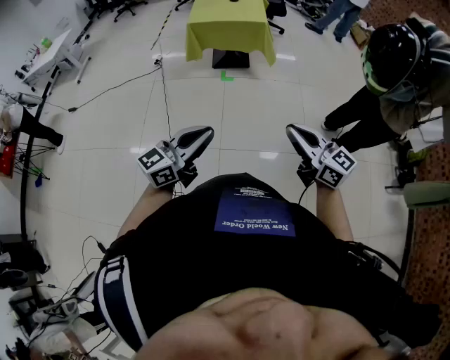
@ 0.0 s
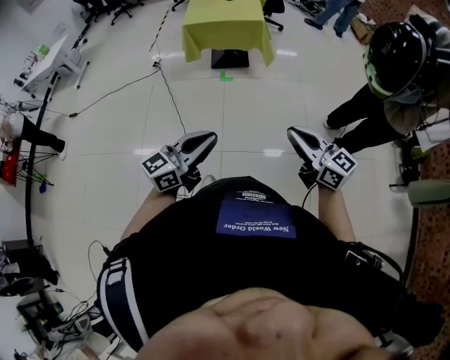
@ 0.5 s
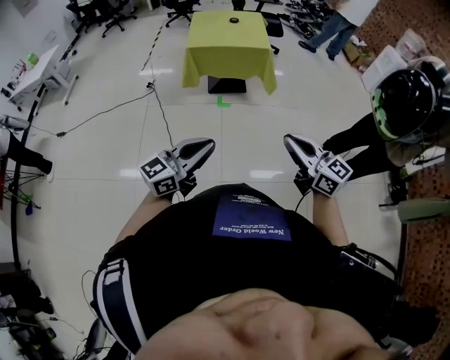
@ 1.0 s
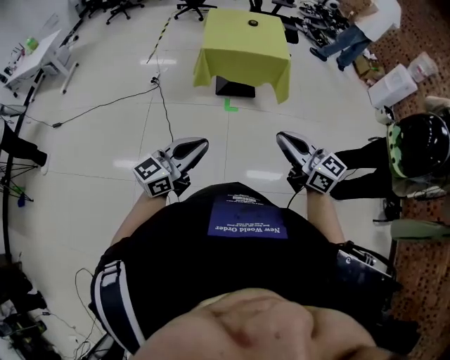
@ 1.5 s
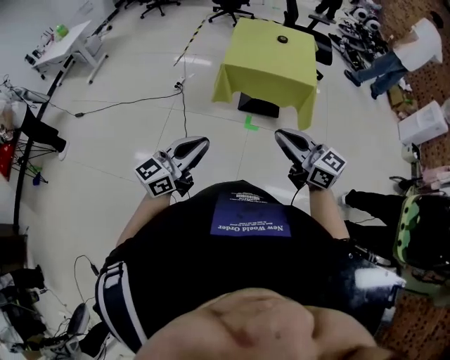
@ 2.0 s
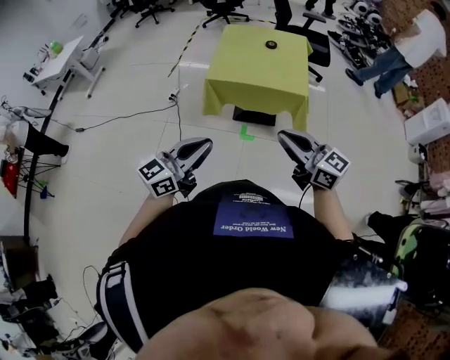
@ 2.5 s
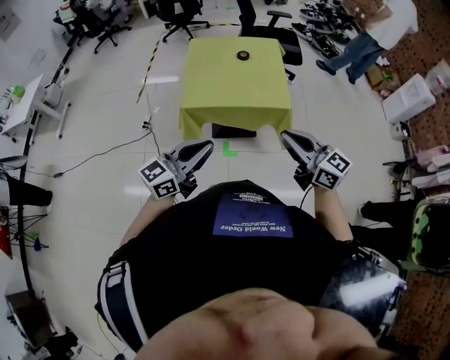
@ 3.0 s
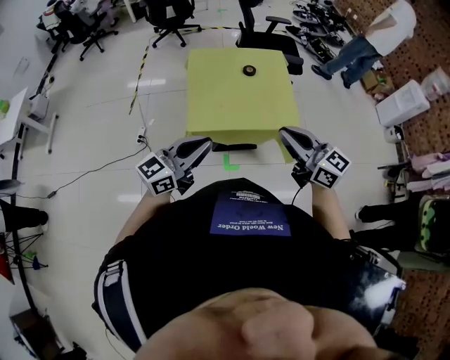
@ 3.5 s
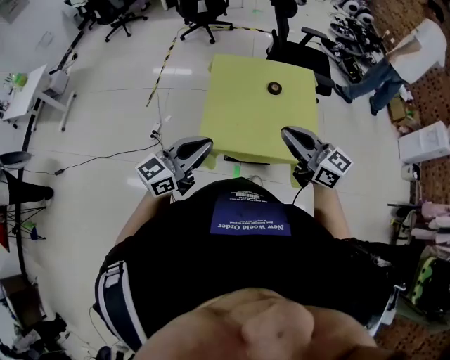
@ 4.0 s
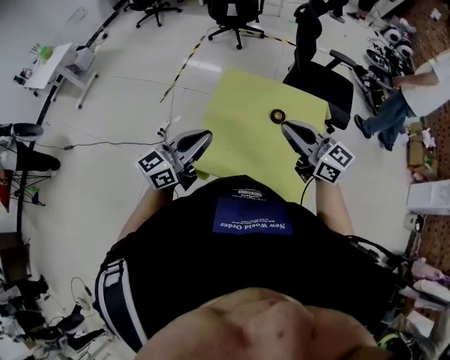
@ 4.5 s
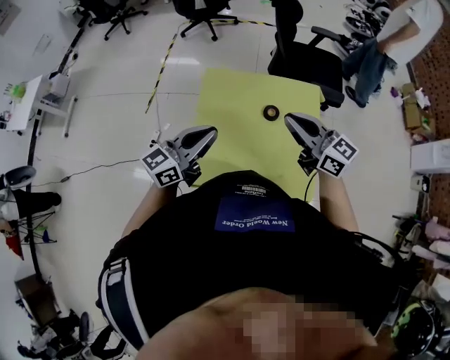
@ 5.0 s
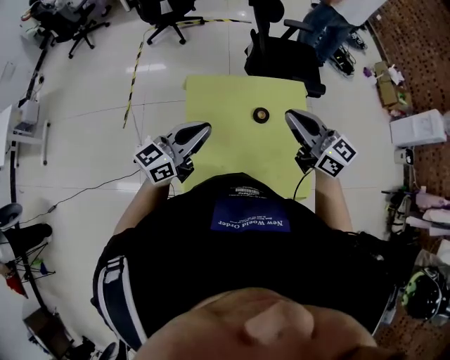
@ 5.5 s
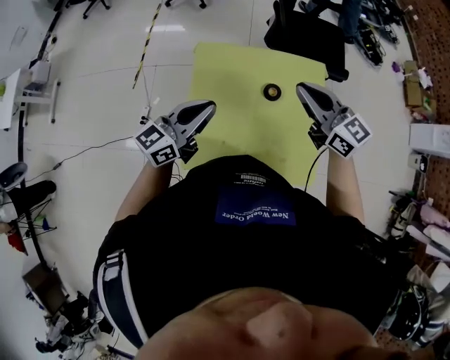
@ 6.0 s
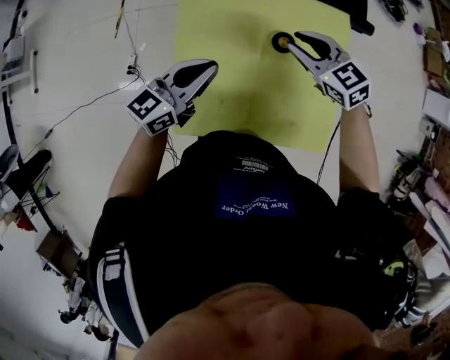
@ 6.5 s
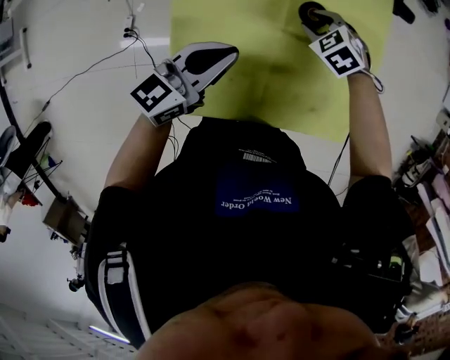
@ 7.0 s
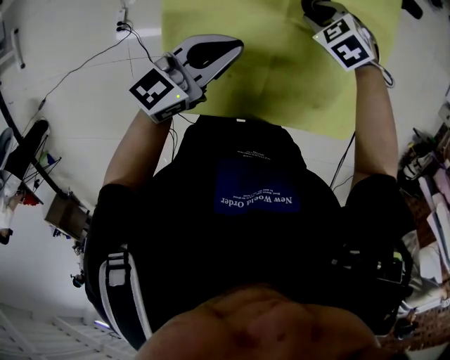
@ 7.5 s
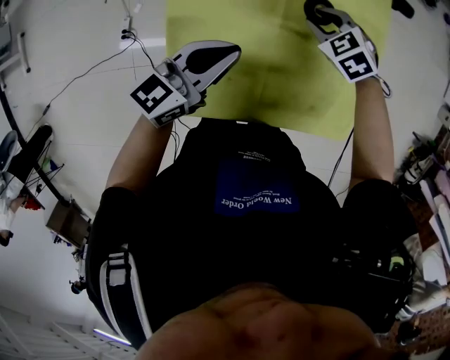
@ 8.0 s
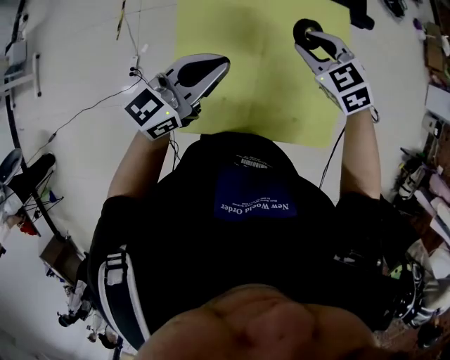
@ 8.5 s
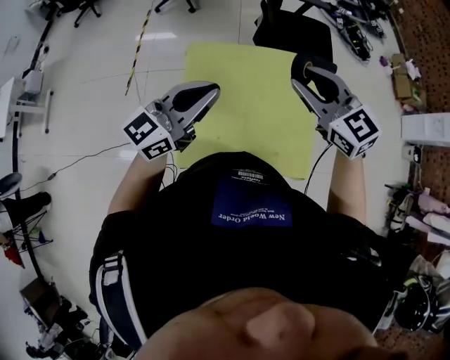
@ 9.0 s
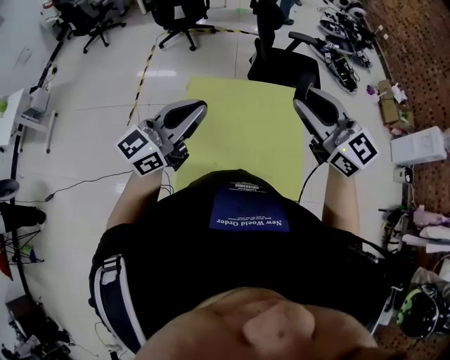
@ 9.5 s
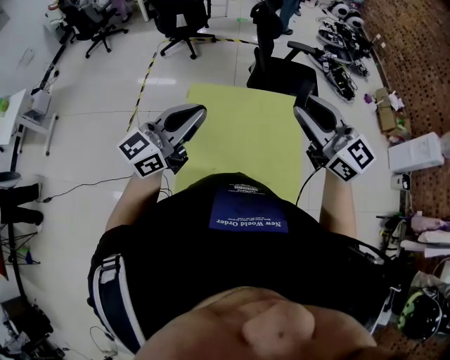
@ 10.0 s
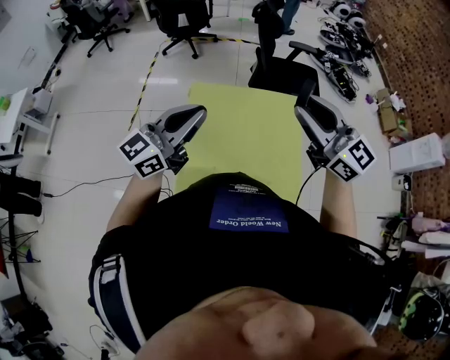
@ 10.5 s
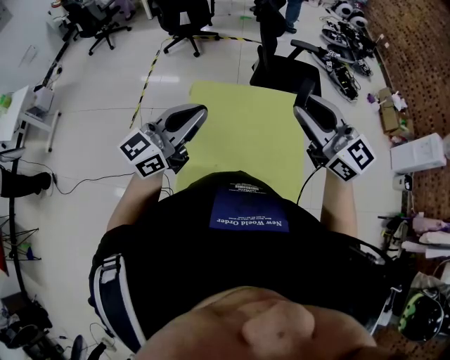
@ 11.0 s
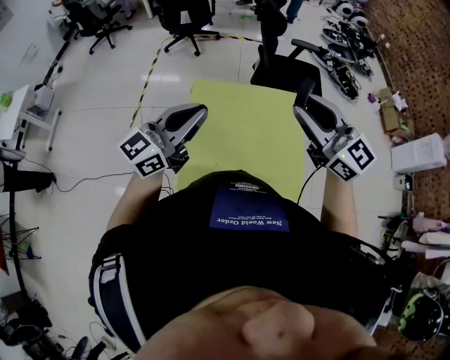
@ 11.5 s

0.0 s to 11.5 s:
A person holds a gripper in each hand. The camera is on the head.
0.0 to 2.0 s: The pair of grippers is taken forward and to the left, some 50 cm.
2.0 to 4.0 s: Both grippers are carried forward, approximately 60 cm.
4.0 to 6.0 s: The grippers both shift forward by roughly 30 cm.
6.0 to 7.5 s: The right gripper moves downward, some 35 cm, tilts its fingers about 60 degrees downward, and opens its fingers, while the left gripper travels downward by about 20 cm.
7.5 to 9.5 s: The left gripper shifts approximately 30 cm upward, and changes its angle by some 30 degrees. Meanwhile the right gripper travels upward by roughly 50 cm, and angles its fingers upward, by about 70 degrees.
9.5 to 11.5 s: There are only small adjustments of the grippers.

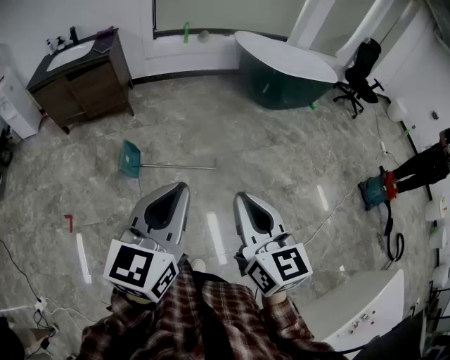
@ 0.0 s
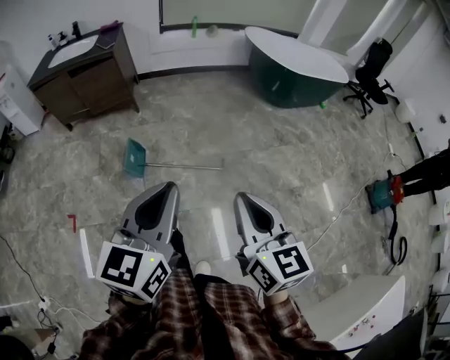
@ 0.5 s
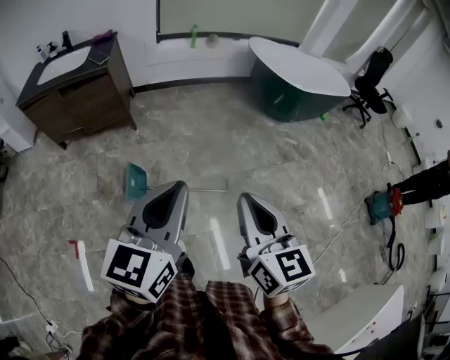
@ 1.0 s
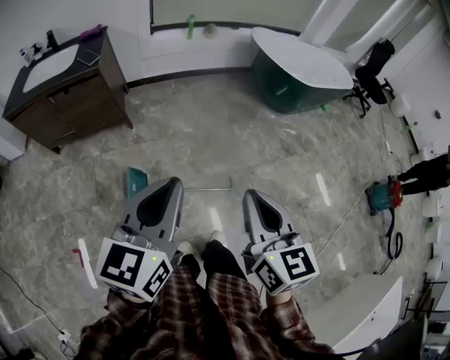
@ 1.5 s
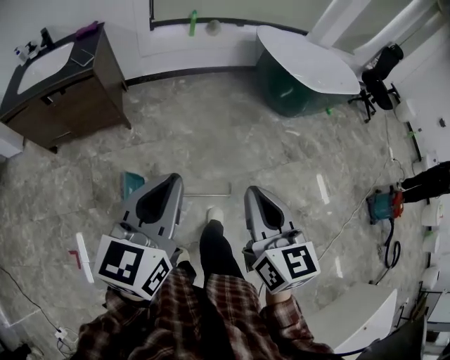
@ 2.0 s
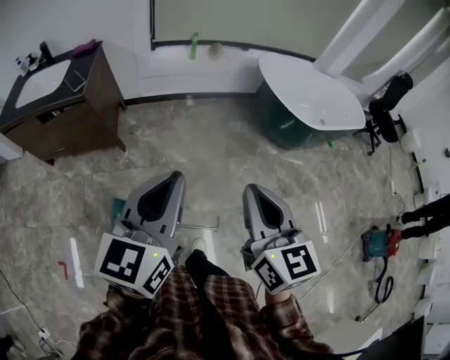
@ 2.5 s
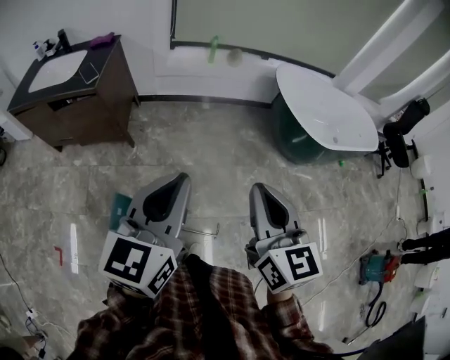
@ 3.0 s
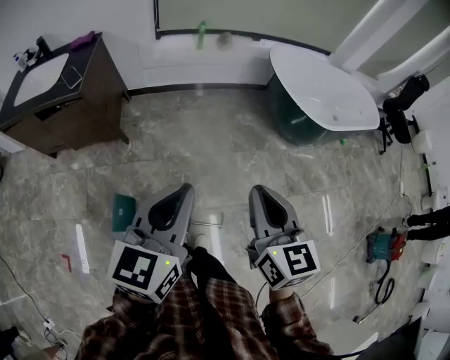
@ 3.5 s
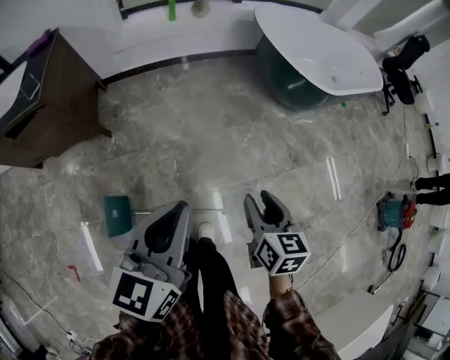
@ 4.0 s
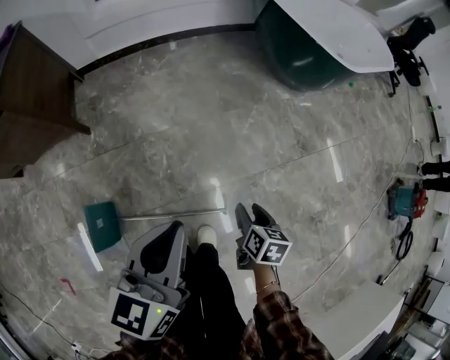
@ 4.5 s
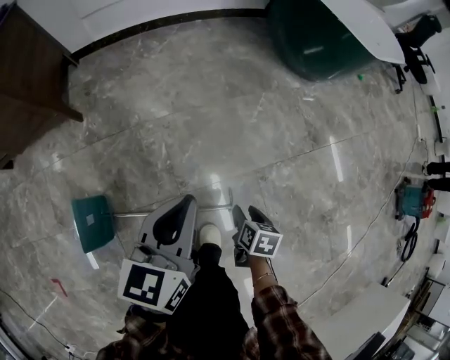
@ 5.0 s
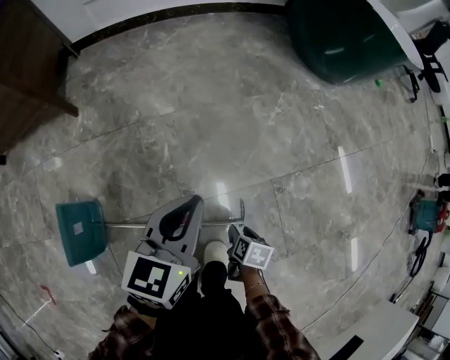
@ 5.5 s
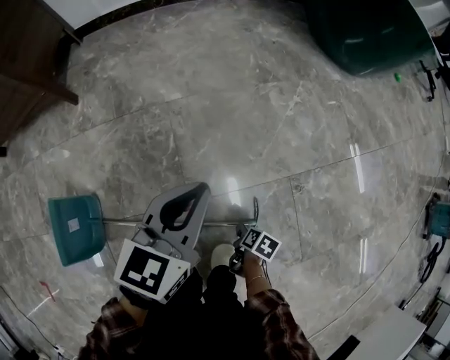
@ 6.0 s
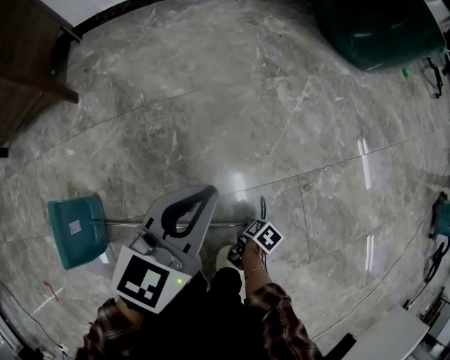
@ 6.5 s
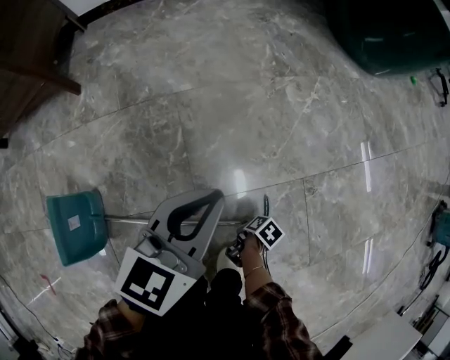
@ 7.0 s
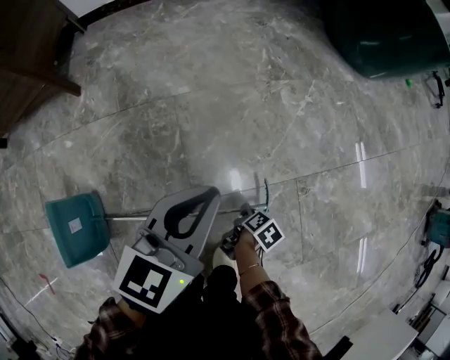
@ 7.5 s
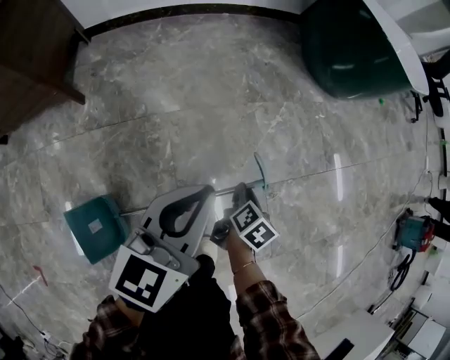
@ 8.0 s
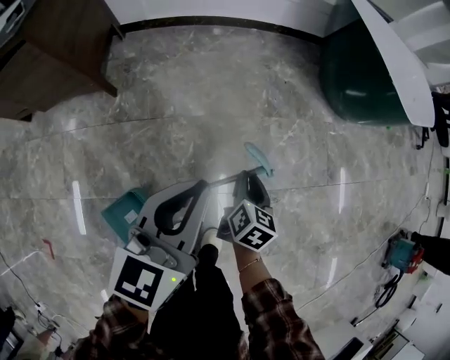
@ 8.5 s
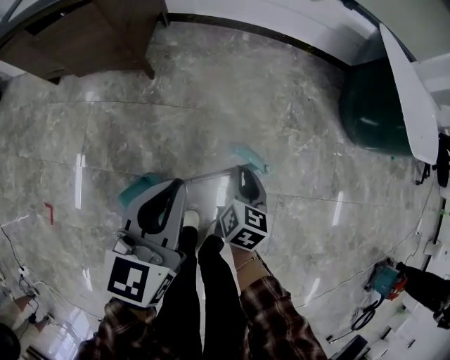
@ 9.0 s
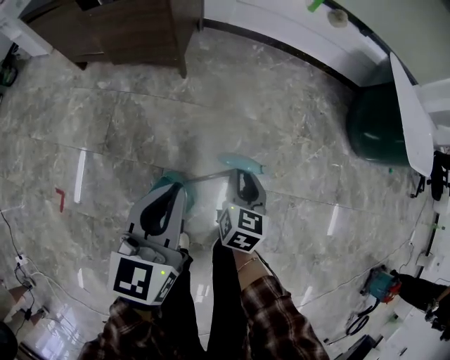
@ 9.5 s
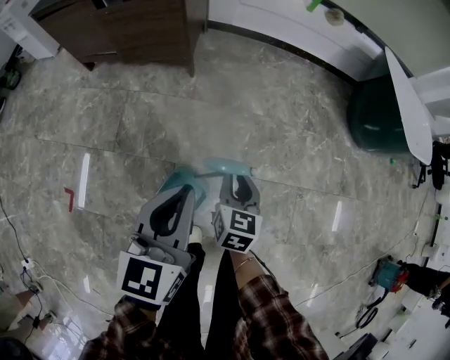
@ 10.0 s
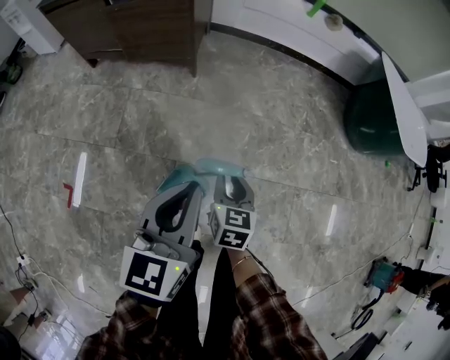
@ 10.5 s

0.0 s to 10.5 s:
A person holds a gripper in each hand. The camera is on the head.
0.0 to 2.0 s: The two grippers travel together, forward, approximately 40 cm.
2.0 to 4.0 s: The left gripper is displaced forward, to the right and downward by about 30 cm. The right gripper travels forward, downward and to the right by about 40 cm, changes its angle by roughly 20 degrees, and opens its fingers.
4.0 to 6.5 s: Both grippers travel together downward, roughly 70 cm. The right gripper angles its fingers downward, by roughly 40 degrees.
6.5 to 8.5 s: The left gripper is displaced upward by roughly 30 cm. The right gripper is displaced upward by roughly 50 cm, points its fingers roughly 40 degrees further upward, and closes its fingers.
8.5 to 10.5 s: The two grippers travel together, to the left and backward, about 40 cm. The left gripper swivels some 20 degrees. The right gripper shifts about 15 cm upward, and swivels roughly 30 degrees.

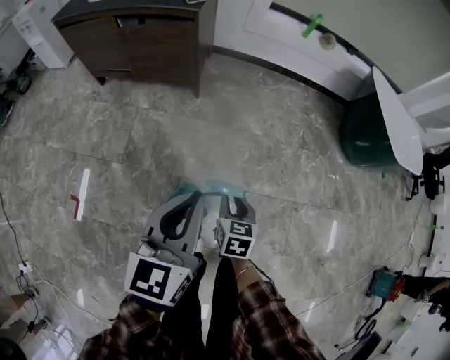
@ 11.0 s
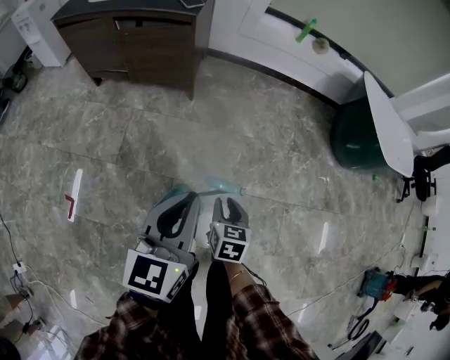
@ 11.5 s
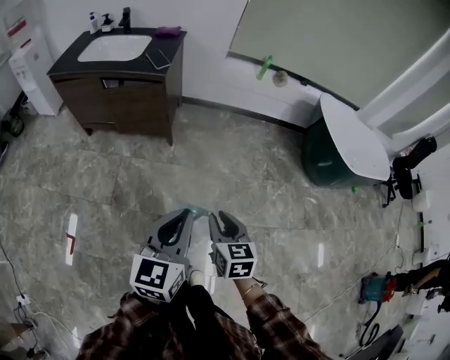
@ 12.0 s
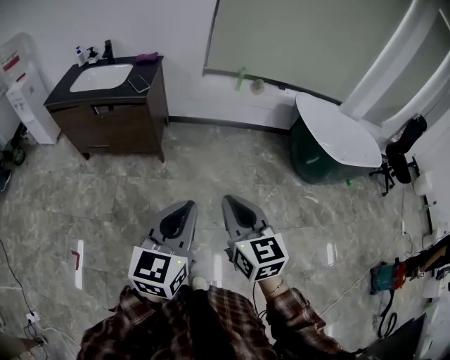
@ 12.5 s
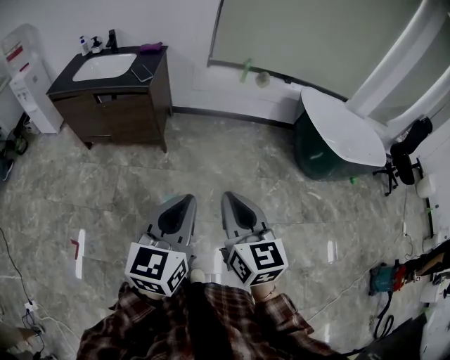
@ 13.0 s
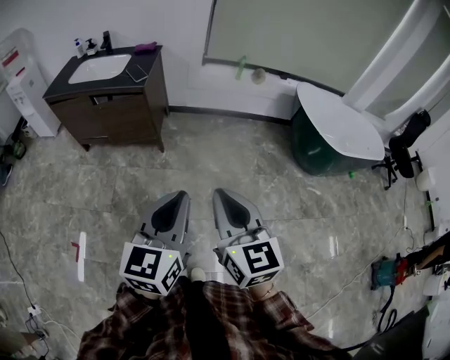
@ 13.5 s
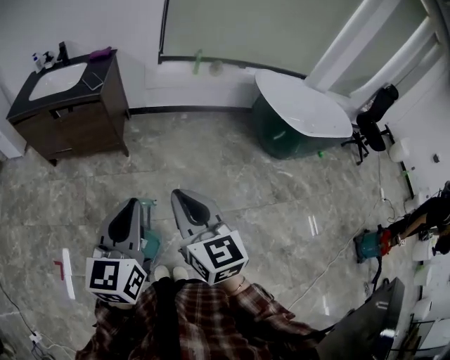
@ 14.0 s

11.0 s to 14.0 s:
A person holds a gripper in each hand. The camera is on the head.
11.0 to 12.5 s: The left gripper shifts roughly 25 cm upward and to the right; the right gripper is displaced upward by approximately 40 cm, and angles its fingers upward, by about 30 degrees.
12.5 to 14.0 s: There are only small adjustments of the grippers.

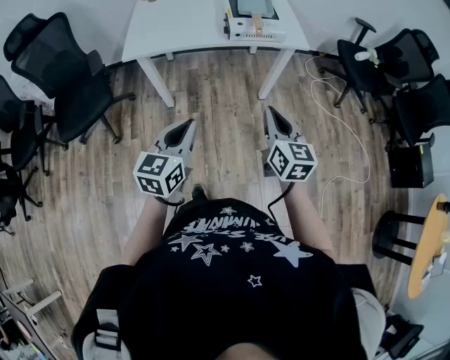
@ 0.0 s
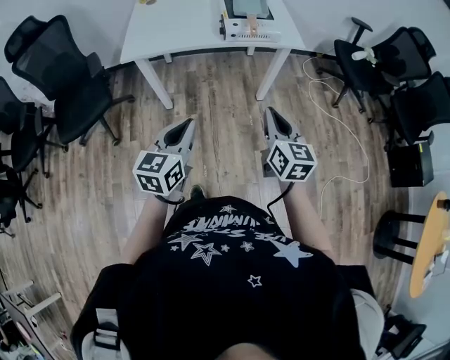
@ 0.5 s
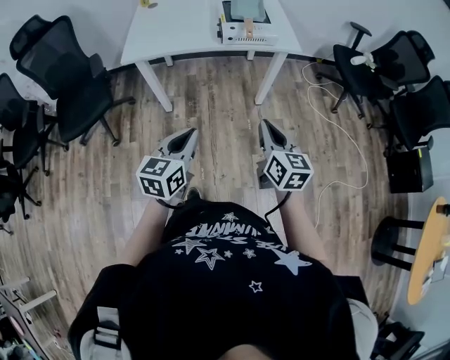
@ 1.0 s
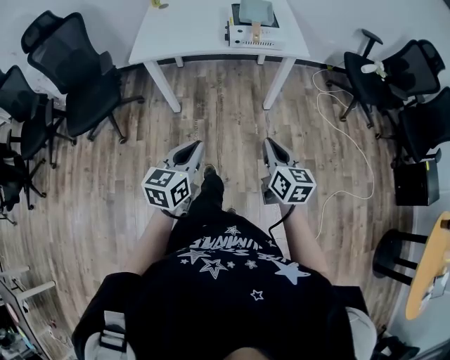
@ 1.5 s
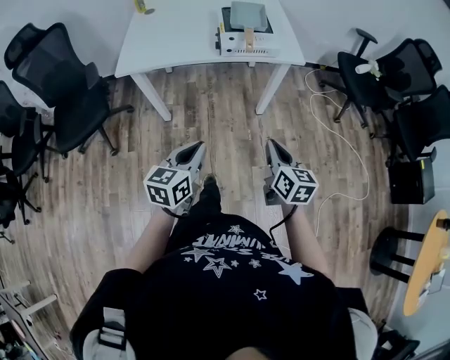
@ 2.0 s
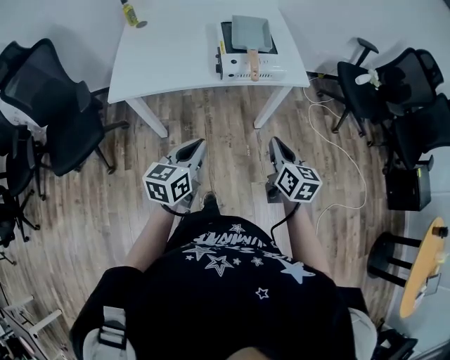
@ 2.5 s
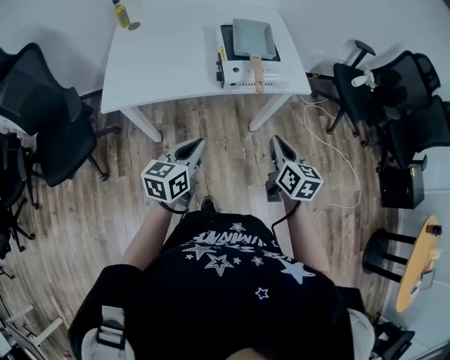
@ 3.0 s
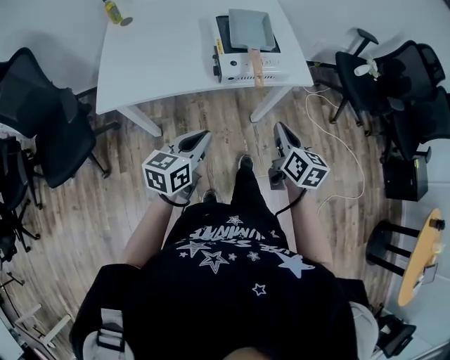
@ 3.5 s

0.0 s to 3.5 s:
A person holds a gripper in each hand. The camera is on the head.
0.0 to 2.0 s: The right gripper goes some 10 cm downward and to the right, and reaches roughly 5 cm backward, then returns. The left gripper is displaced to the right and downward by roughly 10 cm.
2.0 to 3.5 s: The grippers both shift forward by about 25 cm.
